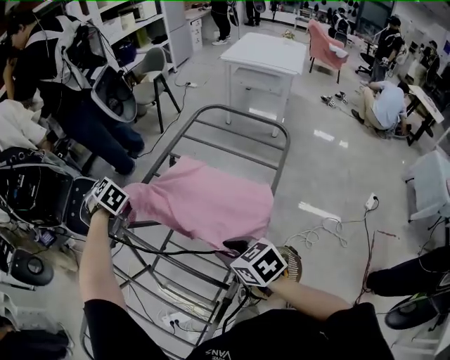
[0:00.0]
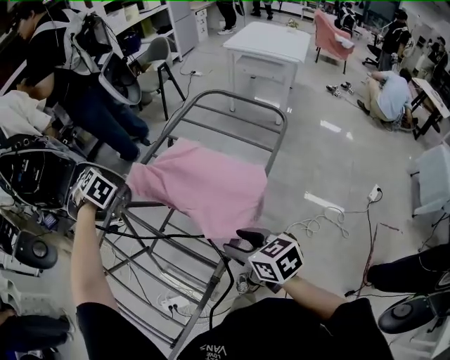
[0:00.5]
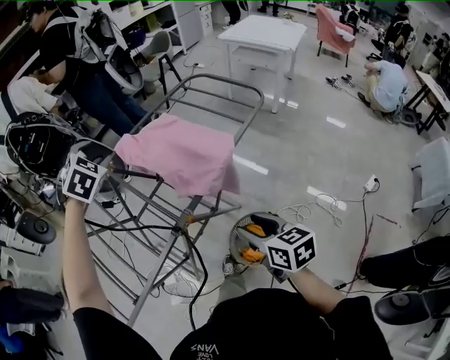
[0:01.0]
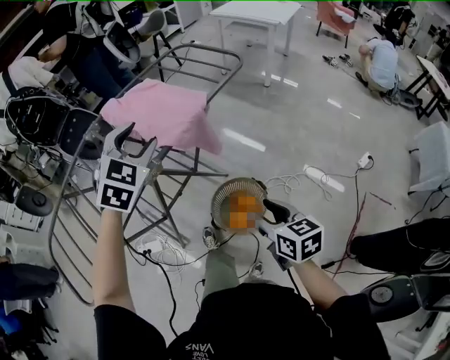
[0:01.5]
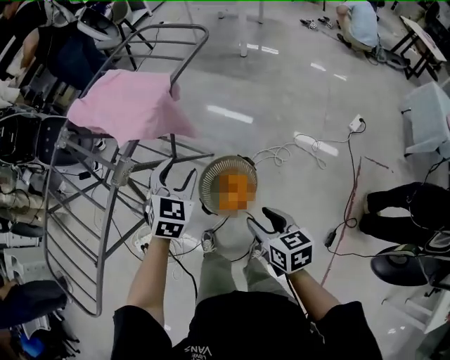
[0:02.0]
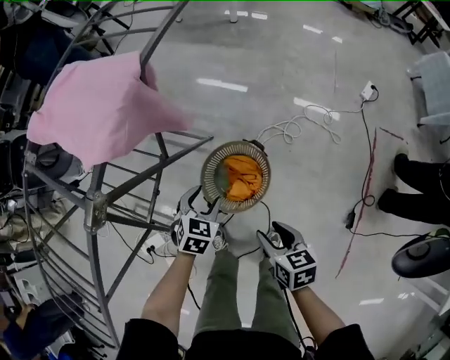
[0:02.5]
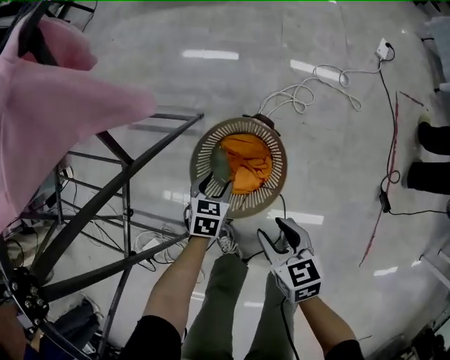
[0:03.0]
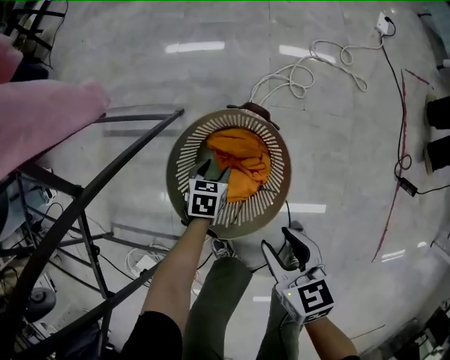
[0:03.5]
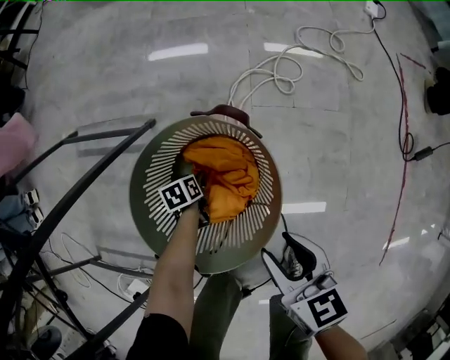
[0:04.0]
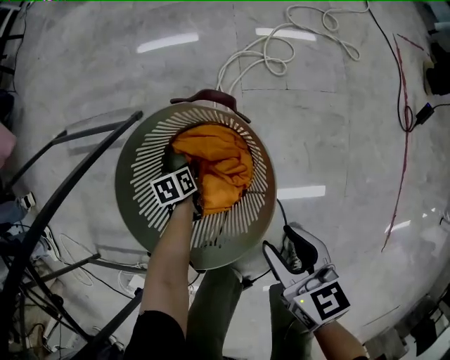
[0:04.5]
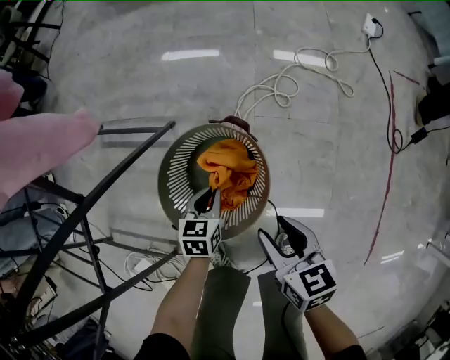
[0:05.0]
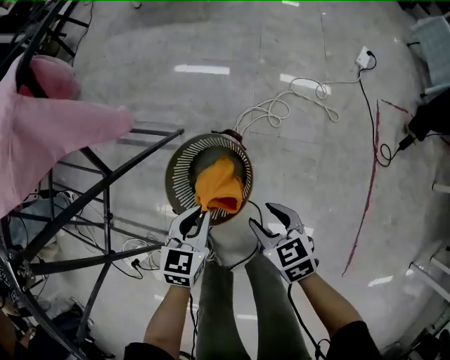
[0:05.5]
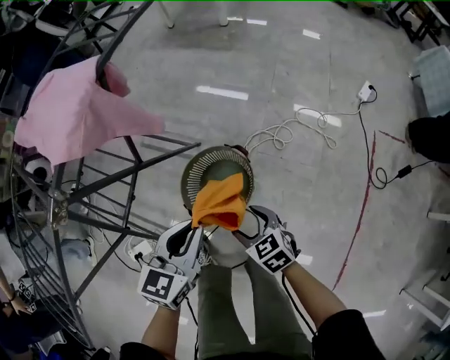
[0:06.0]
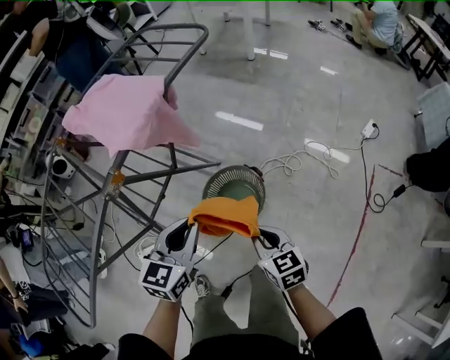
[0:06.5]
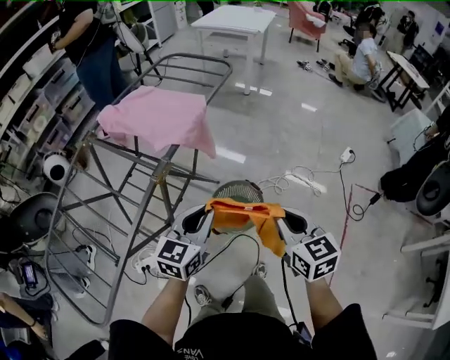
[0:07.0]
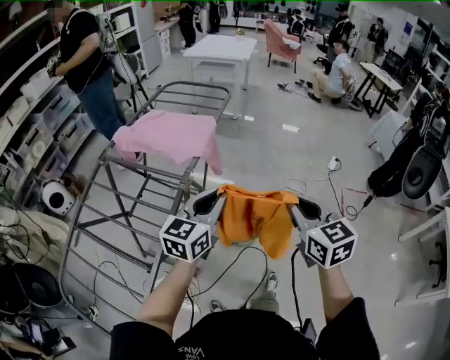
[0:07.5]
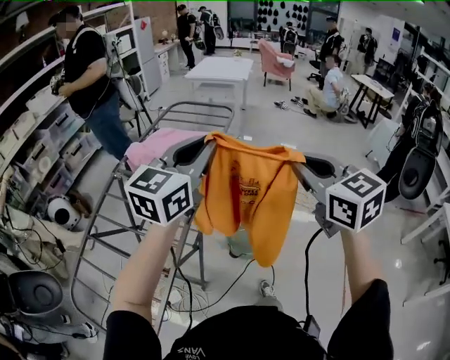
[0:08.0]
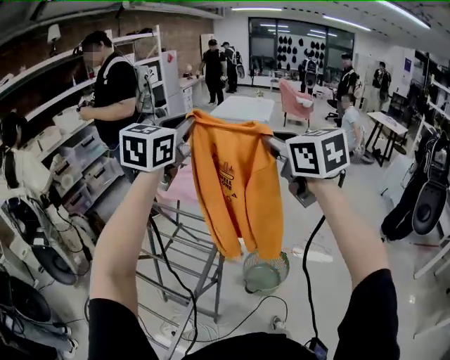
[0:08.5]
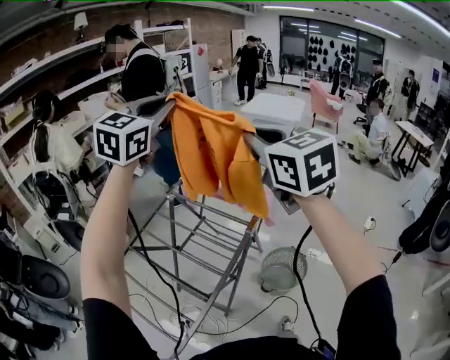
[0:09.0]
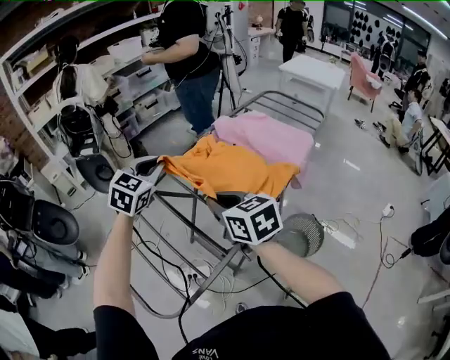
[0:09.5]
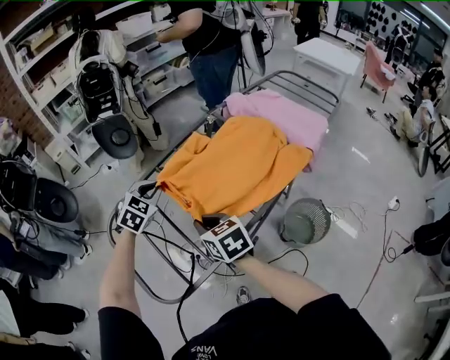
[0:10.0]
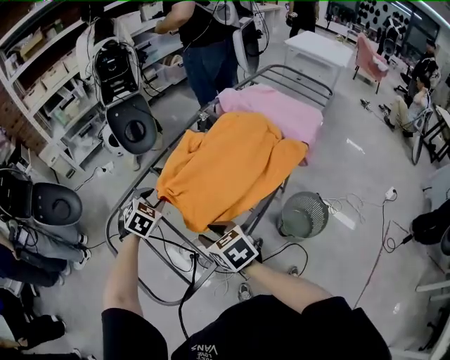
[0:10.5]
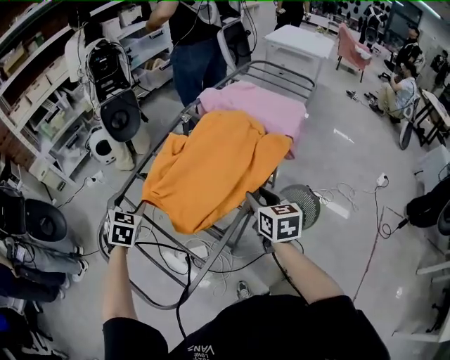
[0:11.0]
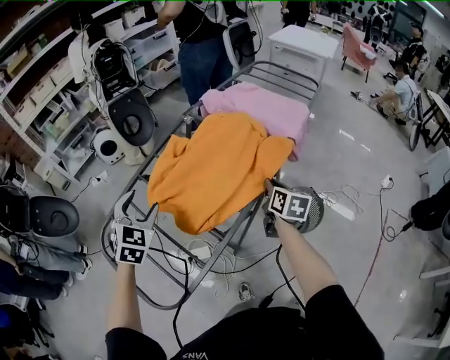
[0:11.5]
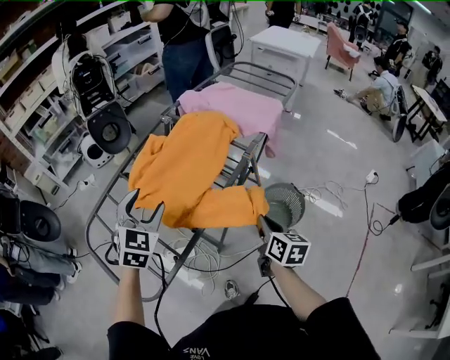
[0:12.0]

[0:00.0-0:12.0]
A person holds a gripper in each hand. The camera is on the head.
0:00.0 to 0:02.0: Both grippers are carried about 60 cm. The left gripper swivels approximately 40 degrees, while the right gripper swivels some 30 degrees.
0:02.0 to 0:04.0: The right gripper heads downward, covering about 40 cm, and swivels roughly 20 degrees; the left gripper heads downward, covering approximately 80 cm, and tilts its fingers approximately 30 degrees downward.
0:04.0 to 0:06.0: The right gripper goes approximately 20 cm upward, and changes its angle by some 40 degrees; the left gripper heads upward, covering about 70 cm, tilts its fingers approximately 40 degrees upward, and closes up.
0:06.0 to 0:08.0: The right gripper shifts some 60 cm upward, tilts its fingers some 30 degrees upward, and closes up. Meanwhile the left gripper is displaced upward and to the left by approximately 60 cm, and tilts its fingers some 40 degrees upward.
0:08.0 to 0:10.0: The two grippers travel together, roughly 50 cm. The right gripper swivels about 50 degrees, while the left gripper angles its fingers downward, by some 40 degrees.
0:10.0 to 0:12.0: The right gripper travels to the right by about 30 cm, swivels approximately 50 degrees, and opens and closes again. The left gripper shifts about 20 cm to the right, backward and upward, and opens up.

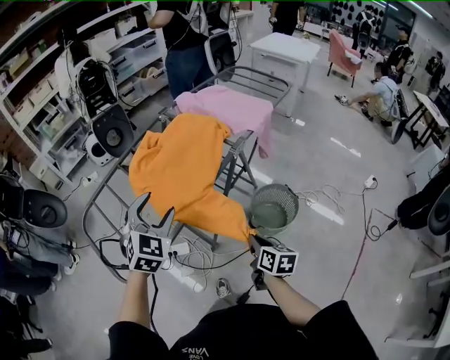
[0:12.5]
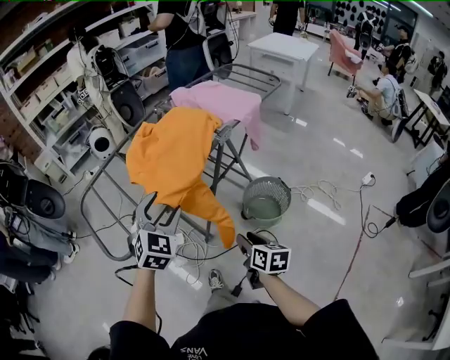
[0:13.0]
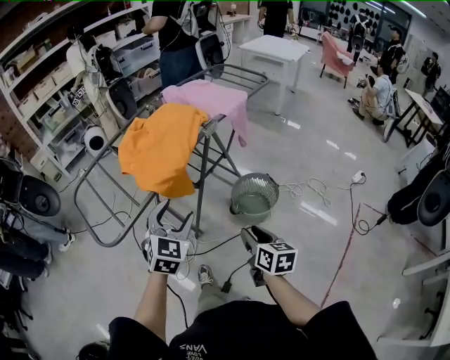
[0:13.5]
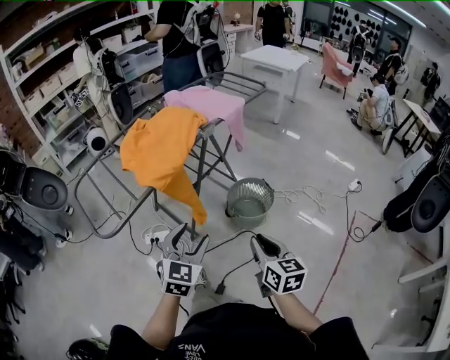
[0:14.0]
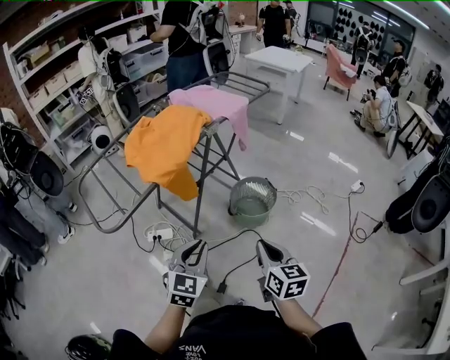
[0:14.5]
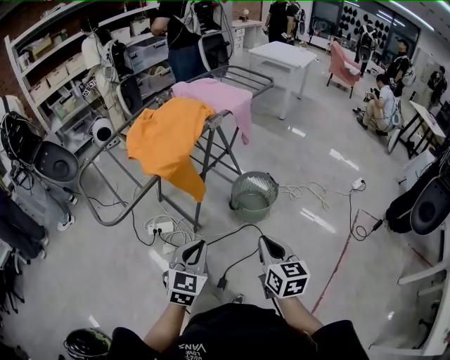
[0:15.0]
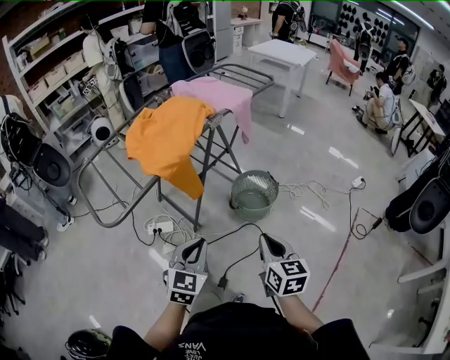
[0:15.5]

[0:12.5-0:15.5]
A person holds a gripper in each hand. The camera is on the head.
0:12.5 to 0:14.0: The right gripper shifts about 25 cm backward, upward and to the right, and turns by about 20 degrees. The left gripper is displaced backward and to the right by approximately 30 cm.
0:14.0 to 0:15.5: The left gripper ends up approximately 5 cm from where it was, and closes its fingers.

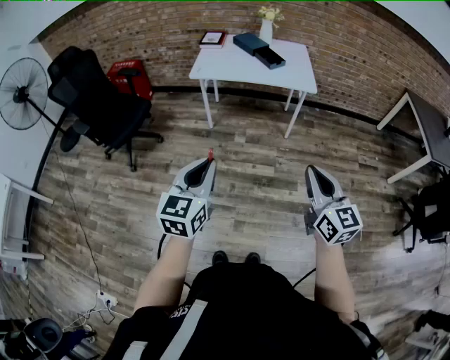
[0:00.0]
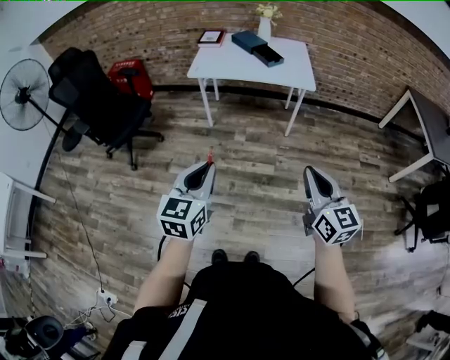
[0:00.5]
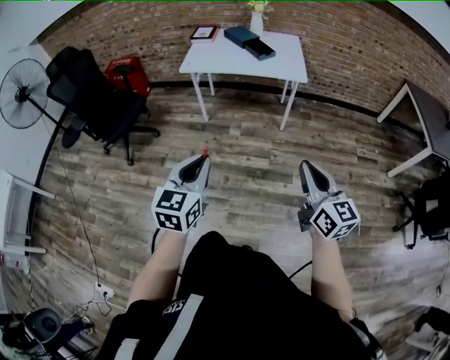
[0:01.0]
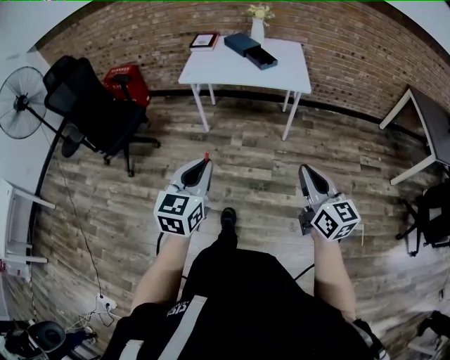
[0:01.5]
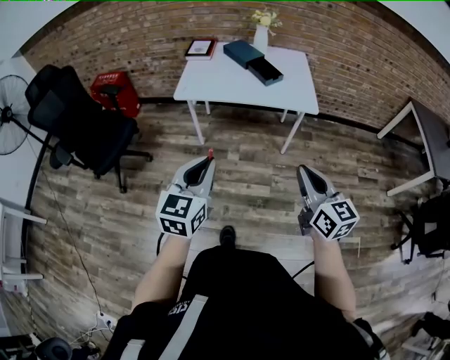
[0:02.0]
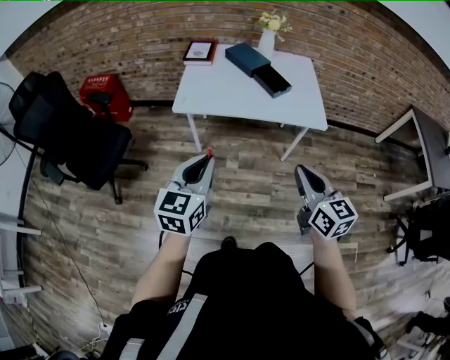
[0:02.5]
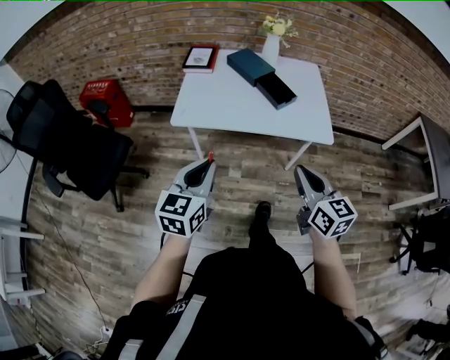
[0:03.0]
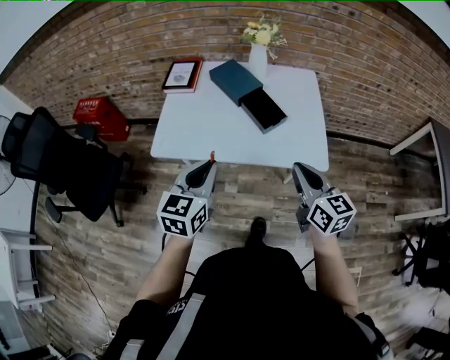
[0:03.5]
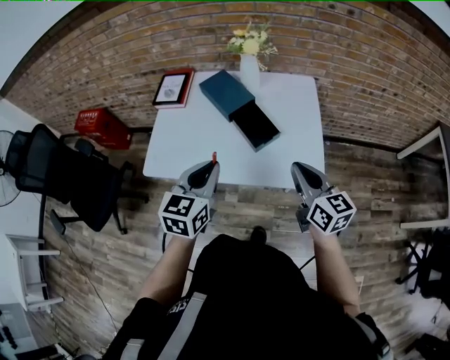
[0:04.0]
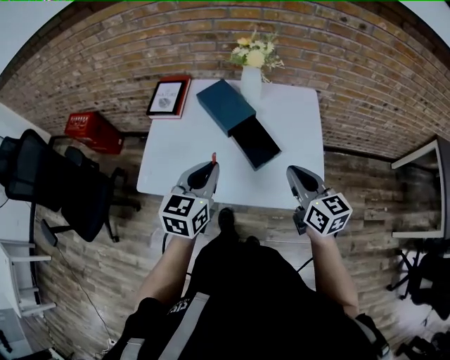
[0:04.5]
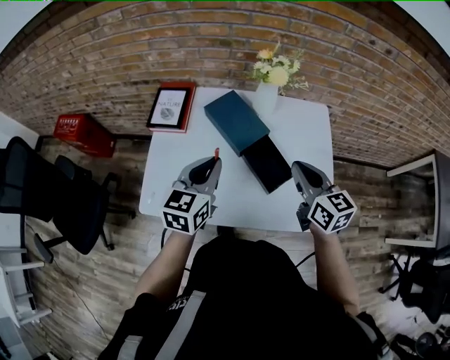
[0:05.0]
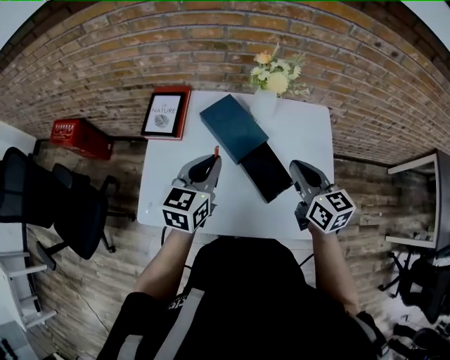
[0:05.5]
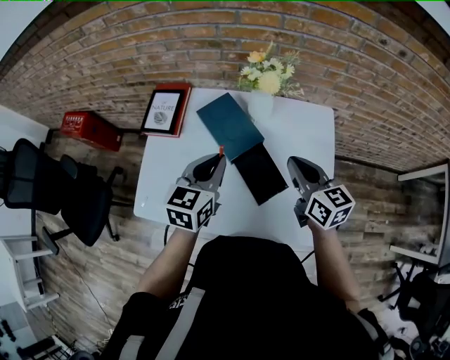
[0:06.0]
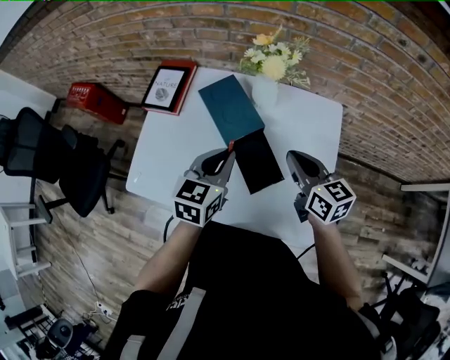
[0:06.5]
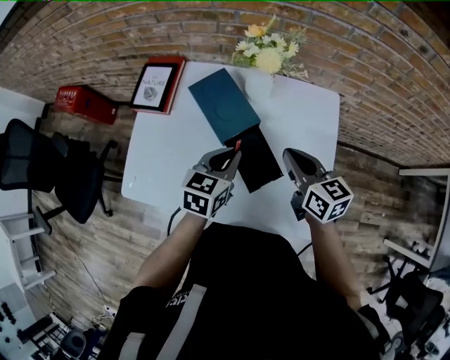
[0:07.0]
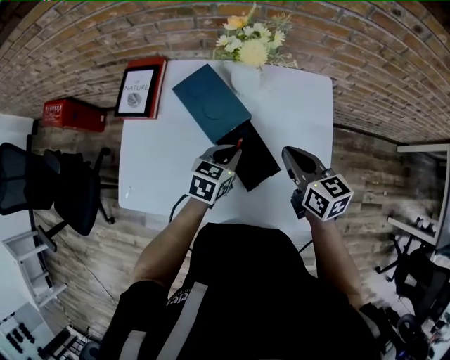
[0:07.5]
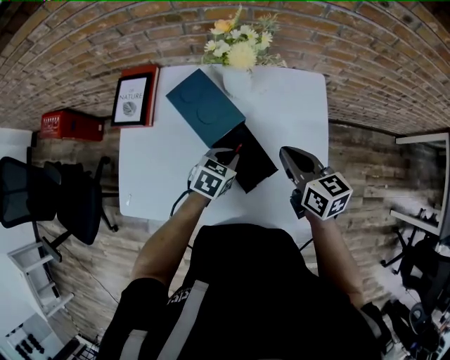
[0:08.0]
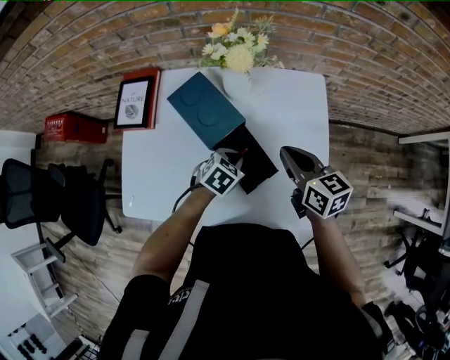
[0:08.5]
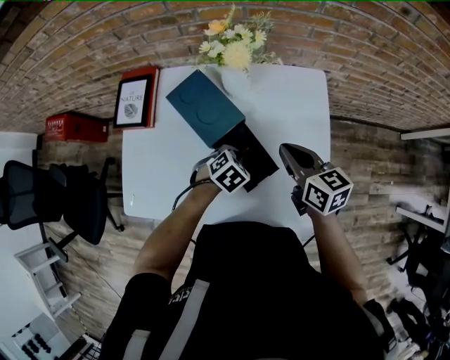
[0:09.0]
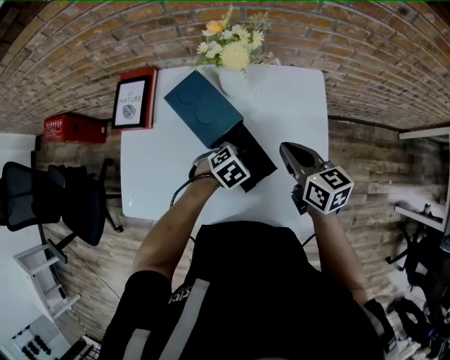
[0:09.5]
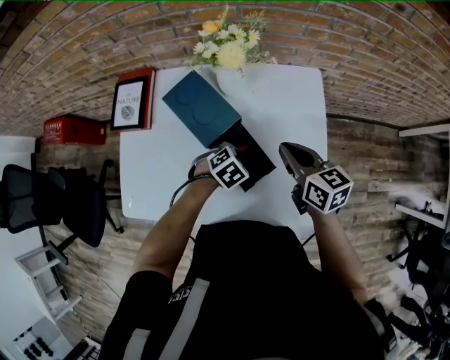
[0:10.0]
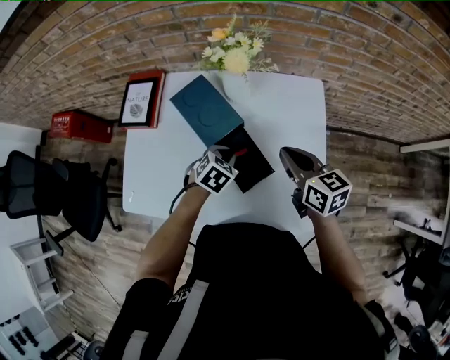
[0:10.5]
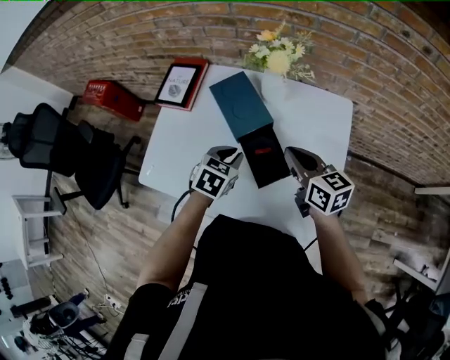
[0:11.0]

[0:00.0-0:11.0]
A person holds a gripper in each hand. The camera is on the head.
0:00.0 to 0:02.0: The grippers both shift forward by approximately 20 cm.
0:02.0 to 0:03.5: Both grippers travel together forward, approximately 40 cm.
0:03.5 to 0:05.5: The grippers both shift forward by approximately 35 cm.
0:05.5 to 0:07.5: The right gripper heads downward and to the right, covering roughly 10 cm; the left gripper heads downward and to the right, covering about 20 cm, and changes its angle by roughly 20 degrees.
0:07.5 to 0:09.0: The left gripper shifts approximately 5 cm downward, and swivels roughly 40 degrees.
0:09.0 to 0:11.0: The left gripper is displaced upward and to the left by roughly 15 cm, and changes its angle by roughly 40 degrees.
